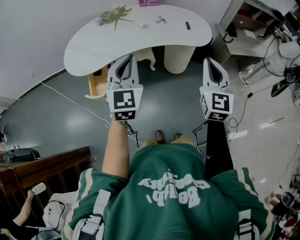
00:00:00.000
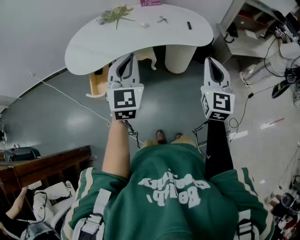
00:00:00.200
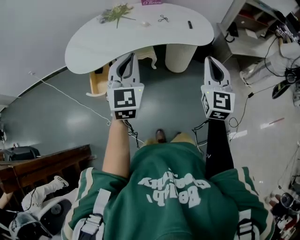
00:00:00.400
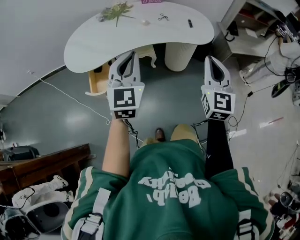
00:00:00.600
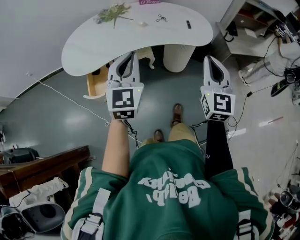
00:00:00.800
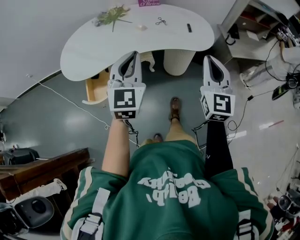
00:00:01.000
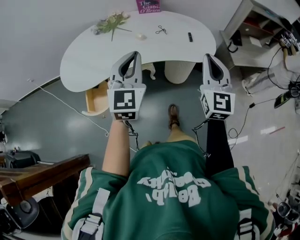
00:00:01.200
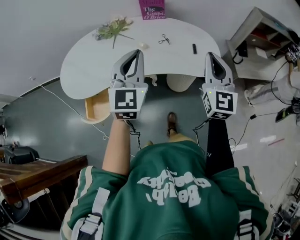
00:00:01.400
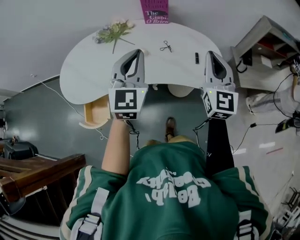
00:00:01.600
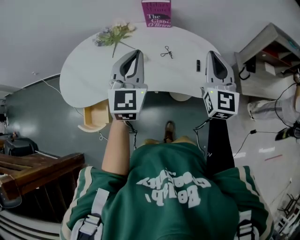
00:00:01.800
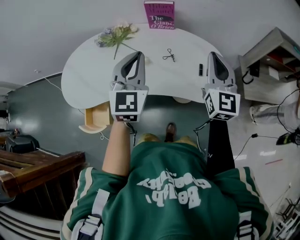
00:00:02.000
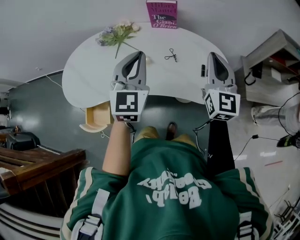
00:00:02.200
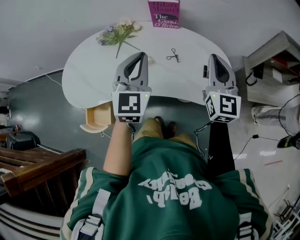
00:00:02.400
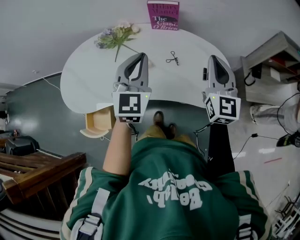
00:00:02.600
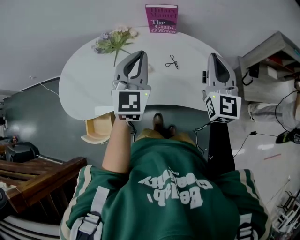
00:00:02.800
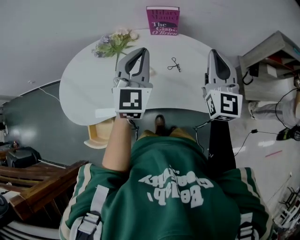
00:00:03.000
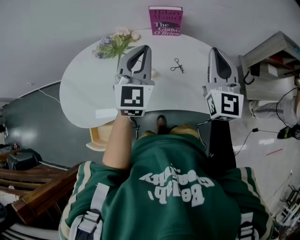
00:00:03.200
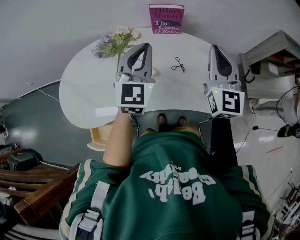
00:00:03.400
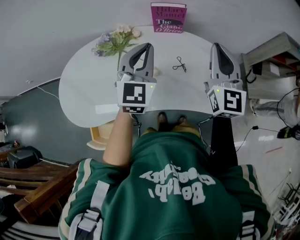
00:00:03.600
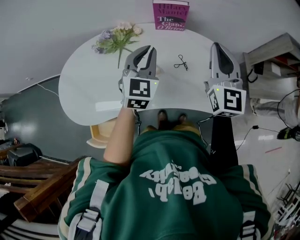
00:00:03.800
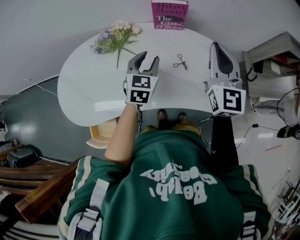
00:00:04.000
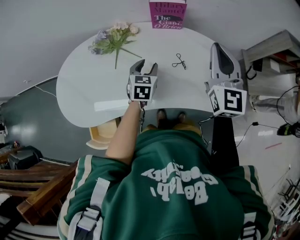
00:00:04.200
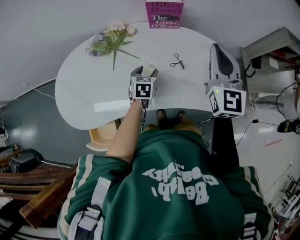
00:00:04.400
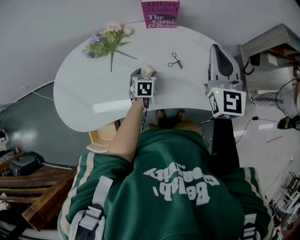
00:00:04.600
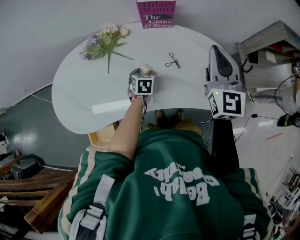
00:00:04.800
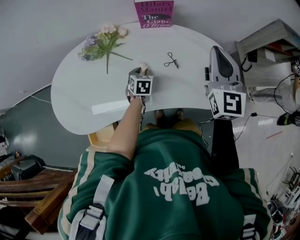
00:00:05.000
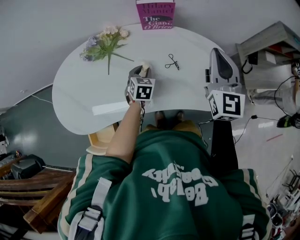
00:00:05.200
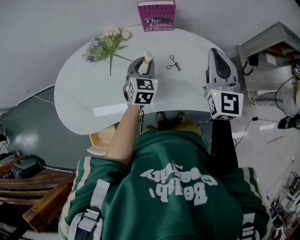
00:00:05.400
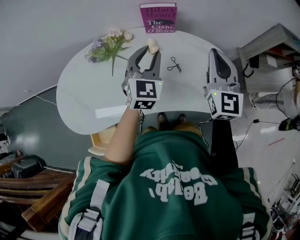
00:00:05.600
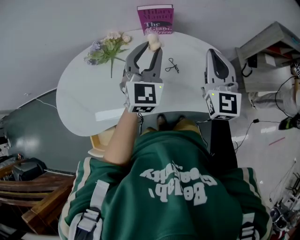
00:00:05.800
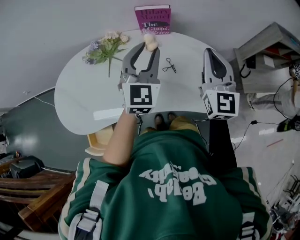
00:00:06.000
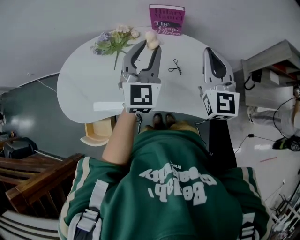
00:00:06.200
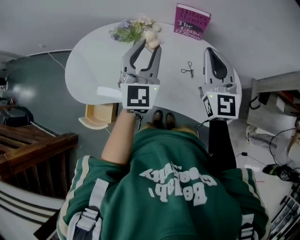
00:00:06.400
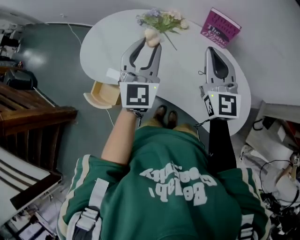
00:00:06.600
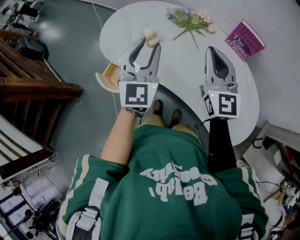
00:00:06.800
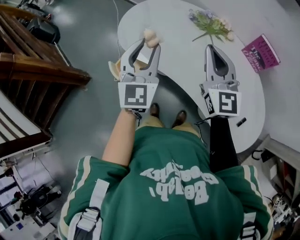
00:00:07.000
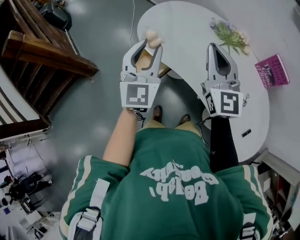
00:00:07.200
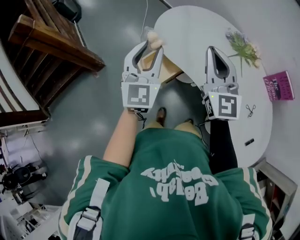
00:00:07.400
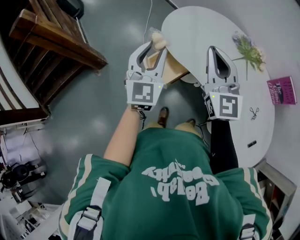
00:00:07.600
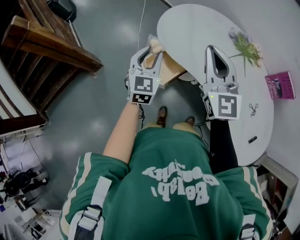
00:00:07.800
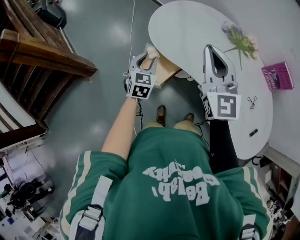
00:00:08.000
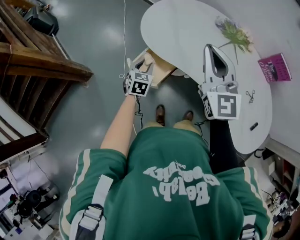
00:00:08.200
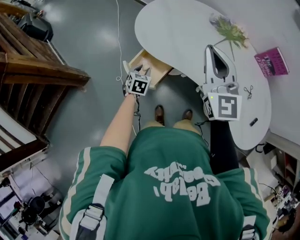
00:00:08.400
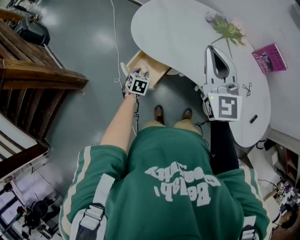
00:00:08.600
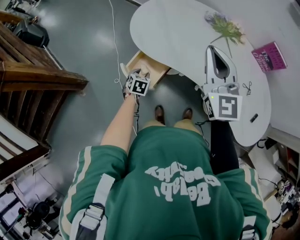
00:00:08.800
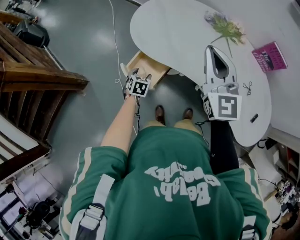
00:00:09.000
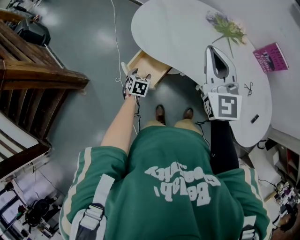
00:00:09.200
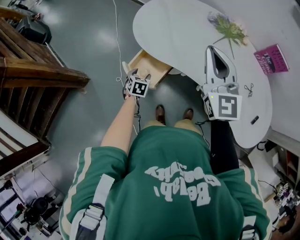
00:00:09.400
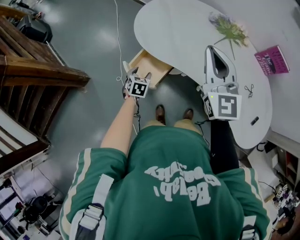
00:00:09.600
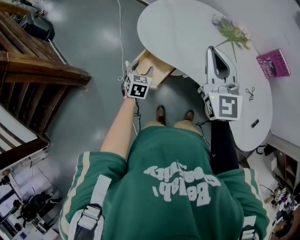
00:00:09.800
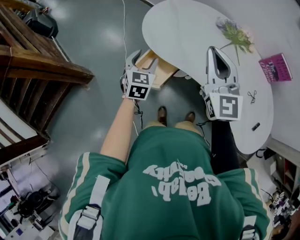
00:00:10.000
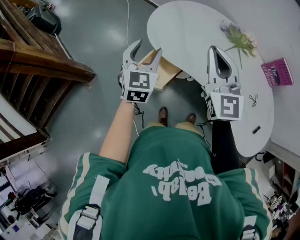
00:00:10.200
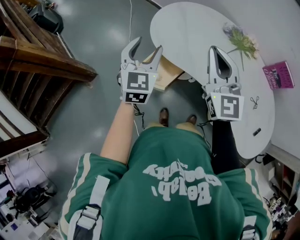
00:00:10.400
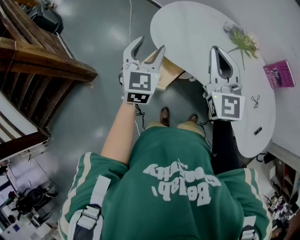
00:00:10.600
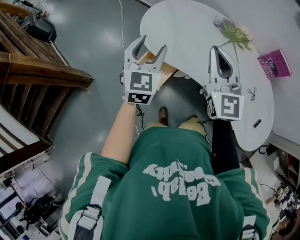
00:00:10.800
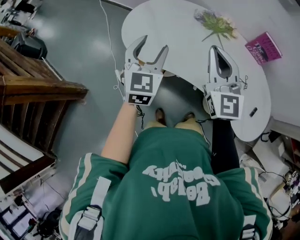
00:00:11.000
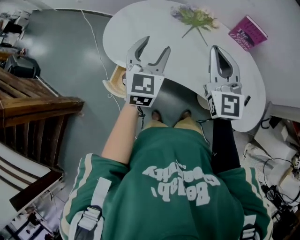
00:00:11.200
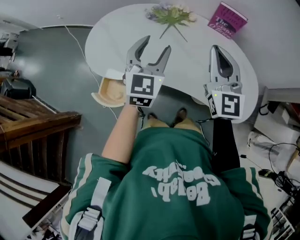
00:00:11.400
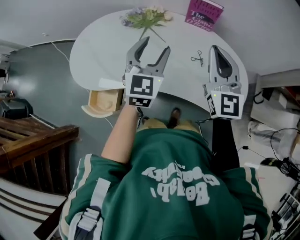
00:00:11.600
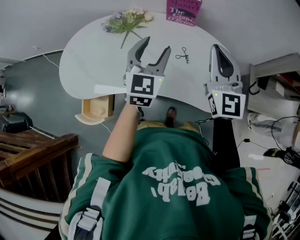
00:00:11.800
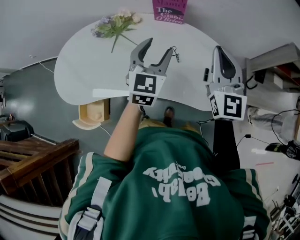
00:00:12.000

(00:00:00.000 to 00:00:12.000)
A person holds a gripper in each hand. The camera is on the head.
00:00:00.000 - 00:00:01.600: The grippers both shift forward by about 30 cm.
00:00:01.600 - 00:00:03.000: The grippers both shift forward by about 15 cm.
00:00:03.000 - 00:00:04.400: The right gripper shifts by some 5 cm. The left gripper heads downward, covering approximately 30 cm, tilts its fingers roughly 40 degrees downward, and opens its fingers.
00:00:04.400 - 00:00:06.000: The left gripper heads upward, covering about 30 cm, angles its fingers upward, by approximately 40 degrees, and closes.
00:00:06.000 - 00:00:07.600: Both grippers are carried approximately 50 cm. The right gripper swivels approximately 70 degrees. The left gripper rotates some 60 degrees.
00:00:07.600 - 00:00:09.000: The left gripper moves downward, some 35 cm, angles its fingers downward, by about 50 degrees, and opens up, while the right gripper moves to the right, approximately 5 cm.
00:00:09.000 - 00:00:10.400: The left gripper shifts roughly 35 cm upward, and angles its fingers upward, by some 40 degrees. The right gripper shifts about 5 cm to the left.
00:00:10.400 - 00:00:12.000: Both grippers are carried some 50 cm. The right gripper swivels some 50 degrees. Meanwhile the left gripper rotates some 50 degrees.

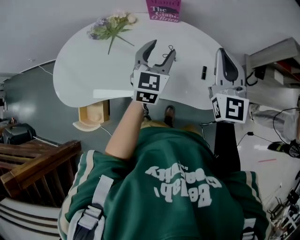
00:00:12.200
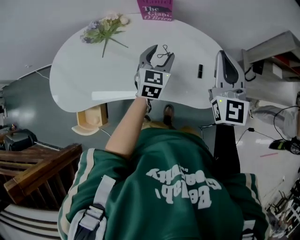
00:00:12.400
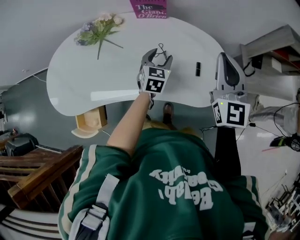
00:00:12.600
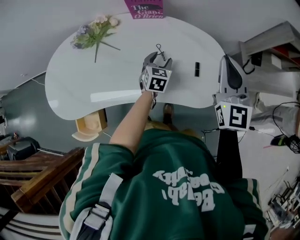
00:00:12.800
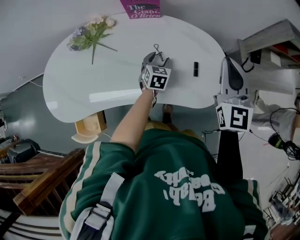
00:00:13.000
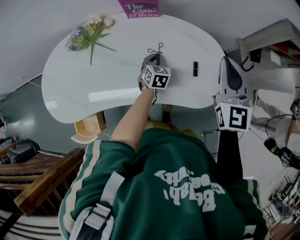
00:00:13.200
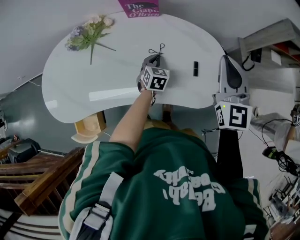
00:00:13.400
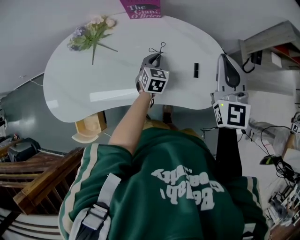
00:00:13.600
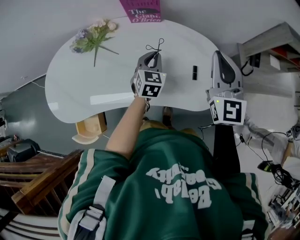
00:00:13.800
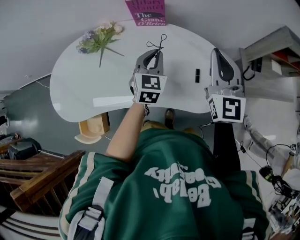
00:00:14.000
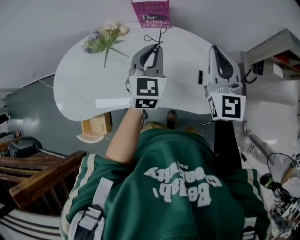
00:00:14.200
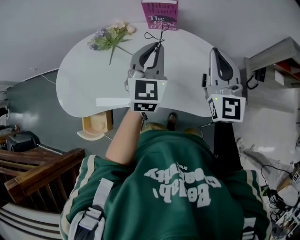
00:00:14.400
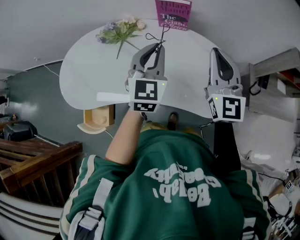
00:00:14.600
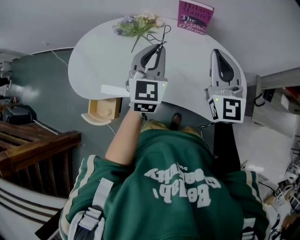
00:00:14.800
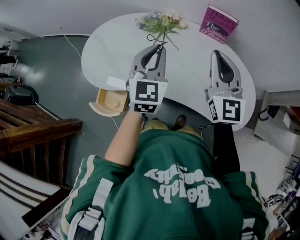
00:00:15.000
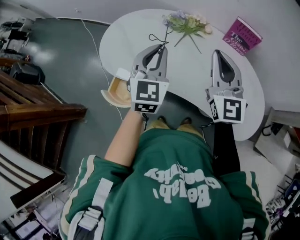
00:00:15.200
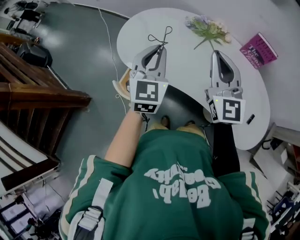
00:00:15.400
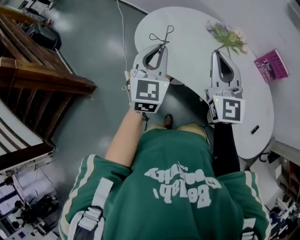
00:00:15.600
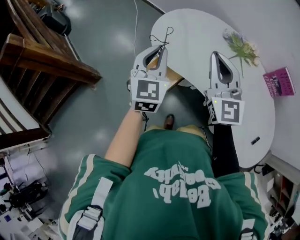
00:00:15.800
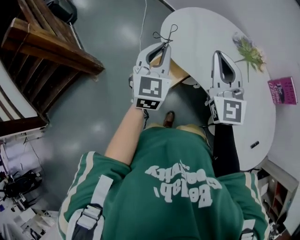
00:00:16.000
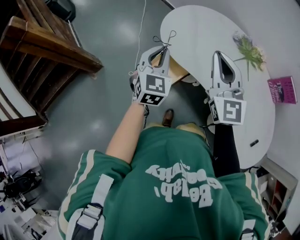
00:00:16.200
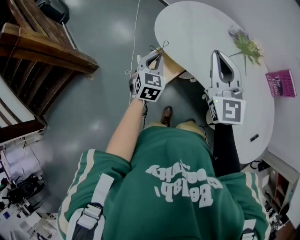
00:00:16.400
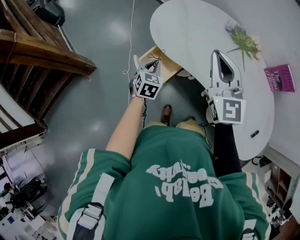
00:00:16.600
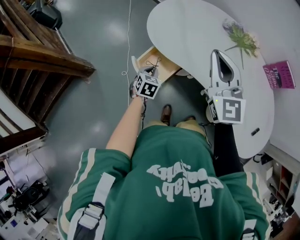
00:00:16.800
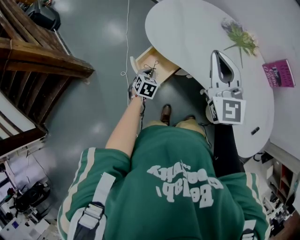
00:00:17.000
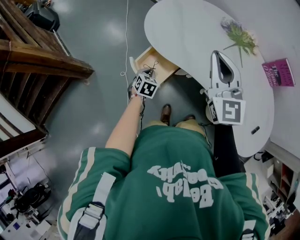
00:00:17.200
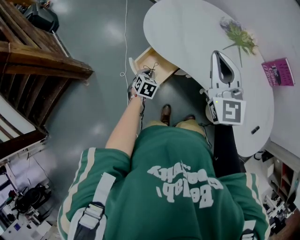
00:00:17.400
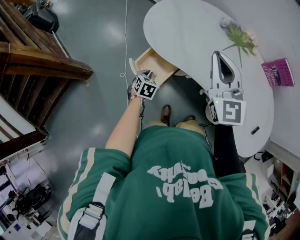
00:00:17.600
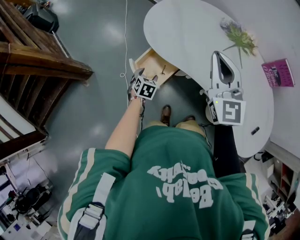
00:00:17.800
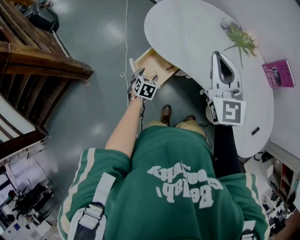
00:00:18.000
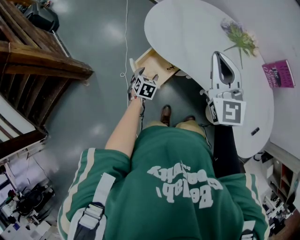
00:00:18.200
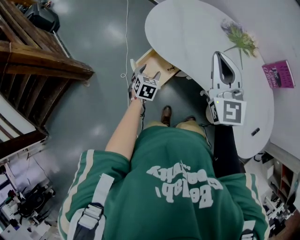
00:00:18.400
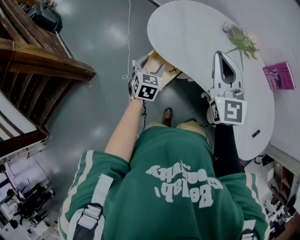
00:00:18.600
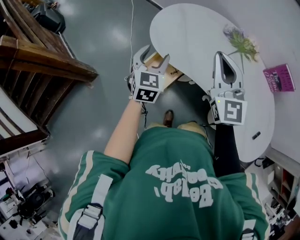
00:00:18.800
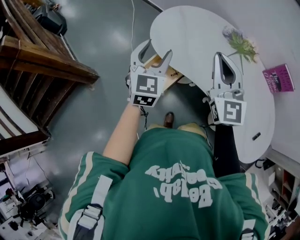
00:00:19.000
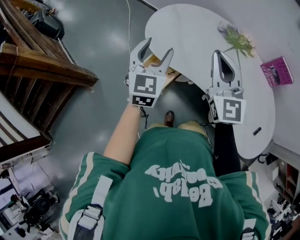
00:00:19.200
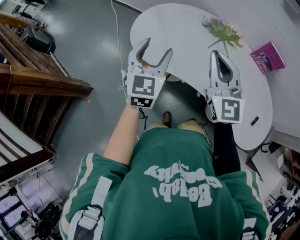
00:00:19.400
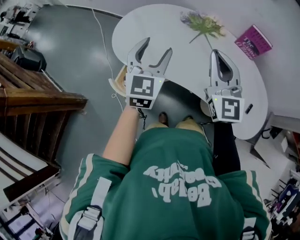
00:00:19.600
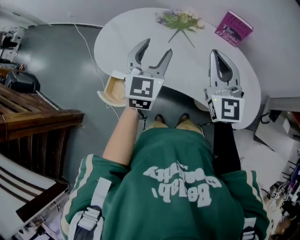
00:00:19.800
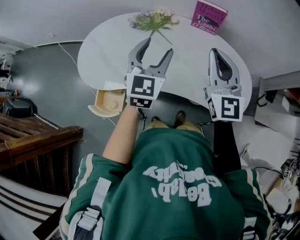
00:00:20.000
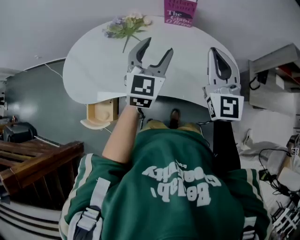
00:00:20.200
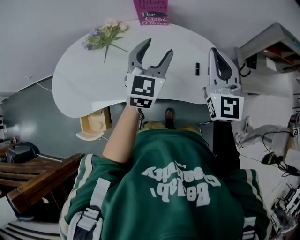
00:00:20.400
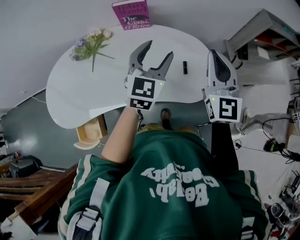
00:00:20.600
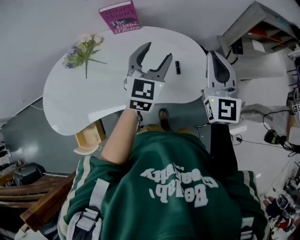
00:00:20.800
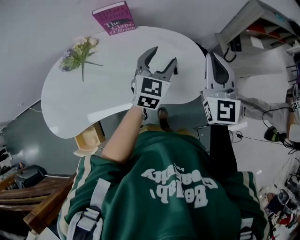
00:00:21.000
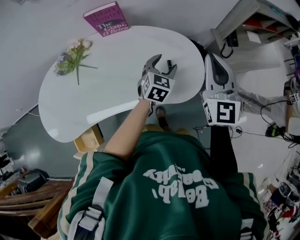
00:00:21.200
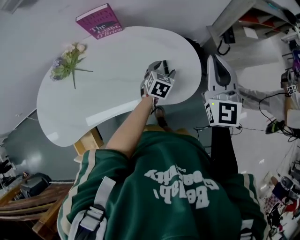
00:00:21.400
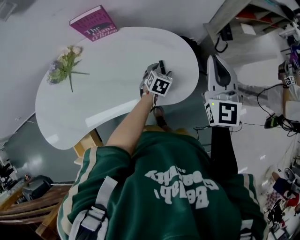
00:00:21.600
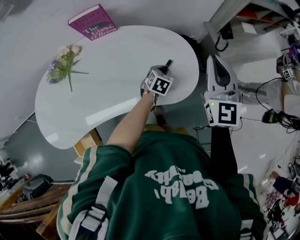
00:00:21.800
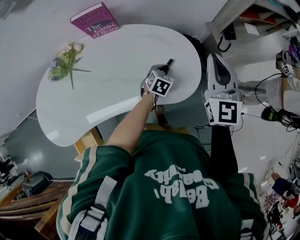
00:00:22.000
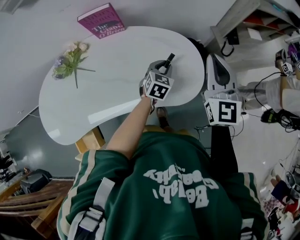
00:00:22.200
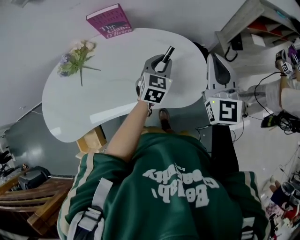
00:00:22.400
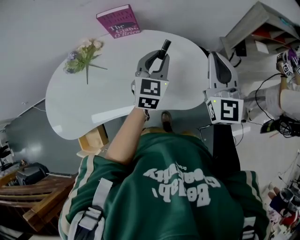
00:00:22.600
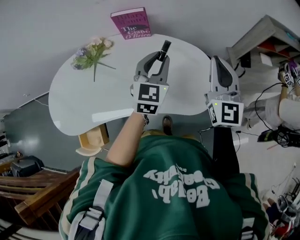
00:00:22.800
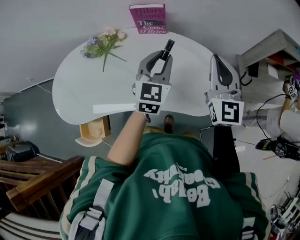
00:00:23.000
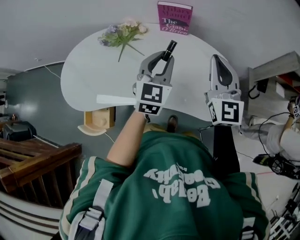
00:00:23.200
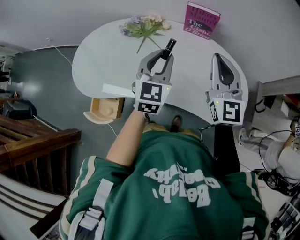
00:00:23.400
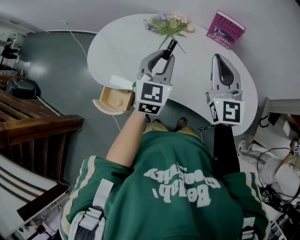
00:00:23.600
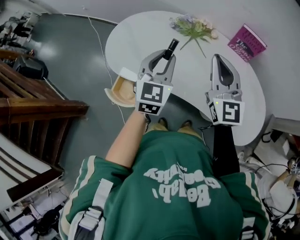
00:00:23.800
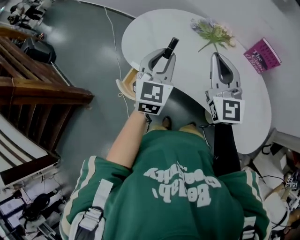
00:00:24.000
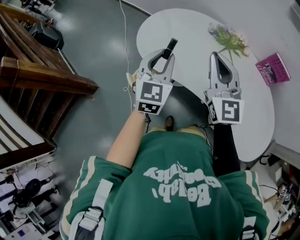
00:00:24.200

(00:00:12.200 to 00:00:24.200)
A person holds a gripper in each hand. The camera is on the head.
00:00:12.200 - 00:00:13.800: The left gripper shifts some 15 cm downward and forward, and closes its fingers, while the right gripper ends up some 5 cm from where it was.
00:00:13.800 - 00:00:15.200: The left gripper shifts by roughly 40 cm, and rotates roughly 30 degrees. Meanwhile the right gripper shifts by roughly 35 cm, and rotates about 30 degrees.
00:00:15.200 - 00:00:16.600: The left gripper moves approximately 35 cm, and changes its angle by roughly 40 degrees; the right gripper shifts by approximately 25 cm, and swivels approximately 30 degrees.
00:00:16.600 - 00:00:18.200: The left gripper shifts about 10 cm downward, and opens.
00:00:18.200 - 00:00:19.800: The right gripper ends up roughly 25 cm from where it was, and turns by about 30 degrees, while the left gripper travels upward by roughly 35 cm, and angles its fingers upward, by about 40 degrees.
00:00:19.800 - 00:00:21.200: The right gripper moves roughly 40 cm, and rotates roughly 40 degrees, while the left gripper ends up roughly 50 cm from where it was, and turns by some 50 degrees.
00:00:21.200 - 00:00:22.600: The left gripper goes approximately 15 cm upward and to the left, and closes up.
00:00:22.600 - 00:00:24.200: The two grippers travel together, about 60 cm. The left gripper turns by some 60 degrees, while the right gripper swivels some 60 degrees.
